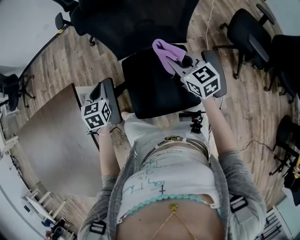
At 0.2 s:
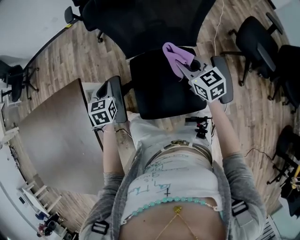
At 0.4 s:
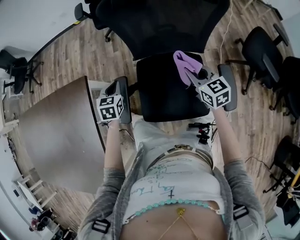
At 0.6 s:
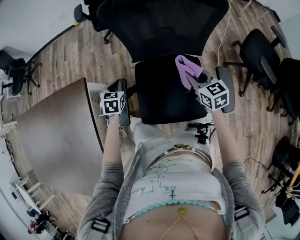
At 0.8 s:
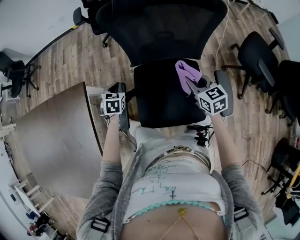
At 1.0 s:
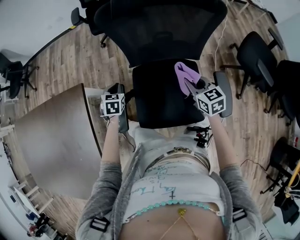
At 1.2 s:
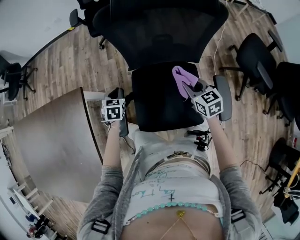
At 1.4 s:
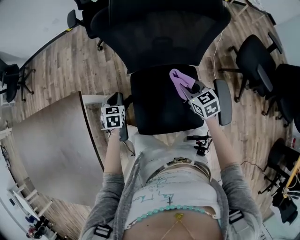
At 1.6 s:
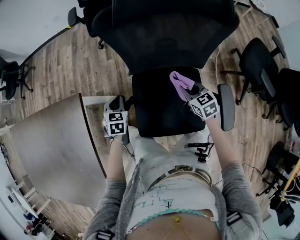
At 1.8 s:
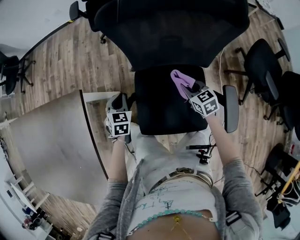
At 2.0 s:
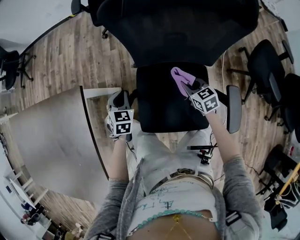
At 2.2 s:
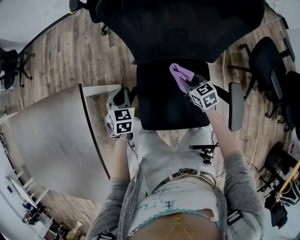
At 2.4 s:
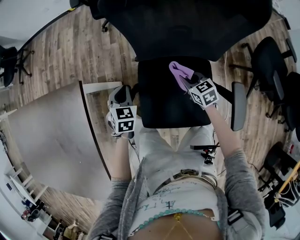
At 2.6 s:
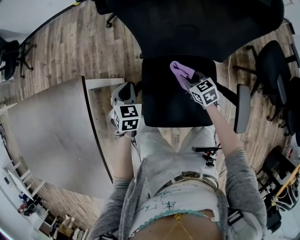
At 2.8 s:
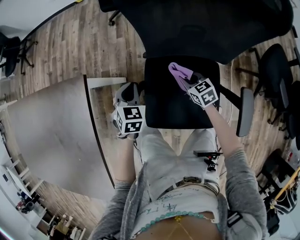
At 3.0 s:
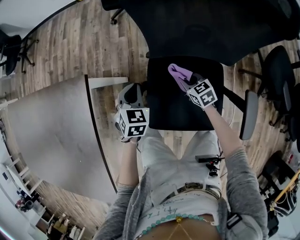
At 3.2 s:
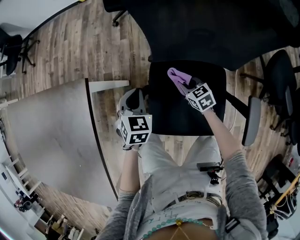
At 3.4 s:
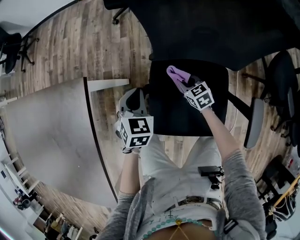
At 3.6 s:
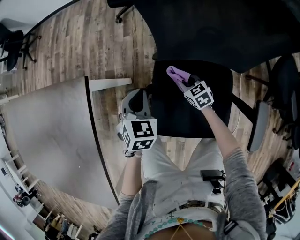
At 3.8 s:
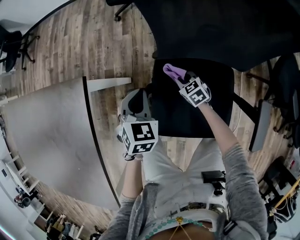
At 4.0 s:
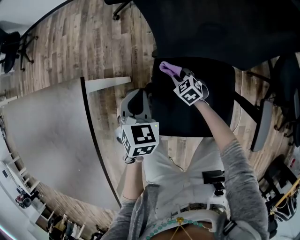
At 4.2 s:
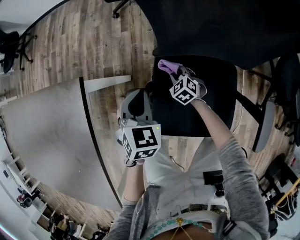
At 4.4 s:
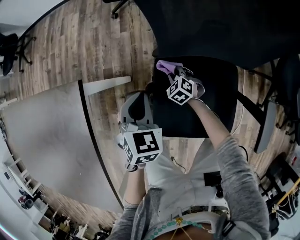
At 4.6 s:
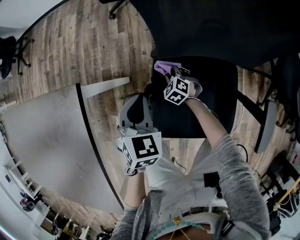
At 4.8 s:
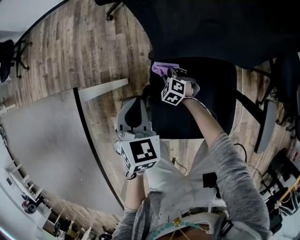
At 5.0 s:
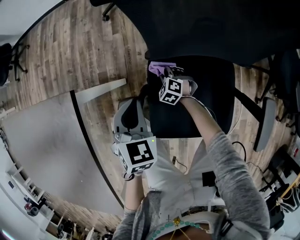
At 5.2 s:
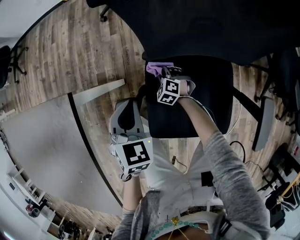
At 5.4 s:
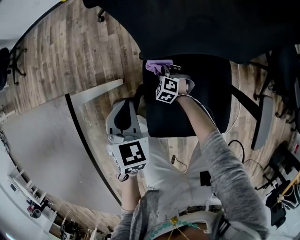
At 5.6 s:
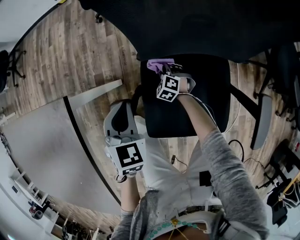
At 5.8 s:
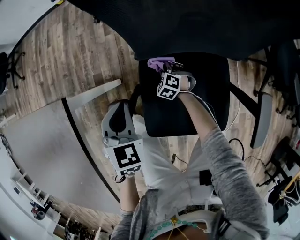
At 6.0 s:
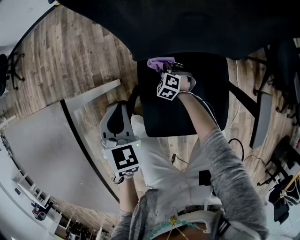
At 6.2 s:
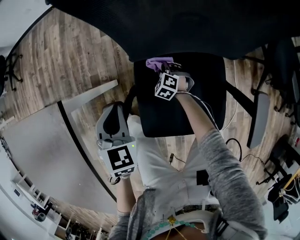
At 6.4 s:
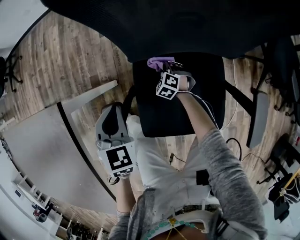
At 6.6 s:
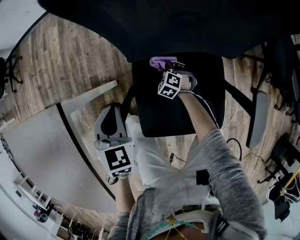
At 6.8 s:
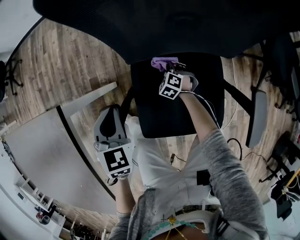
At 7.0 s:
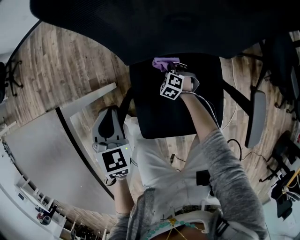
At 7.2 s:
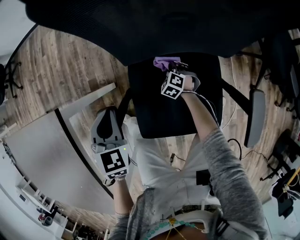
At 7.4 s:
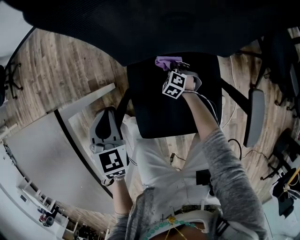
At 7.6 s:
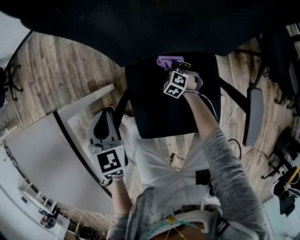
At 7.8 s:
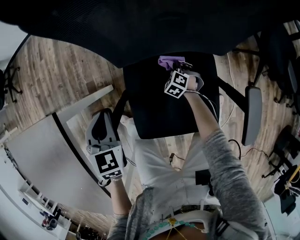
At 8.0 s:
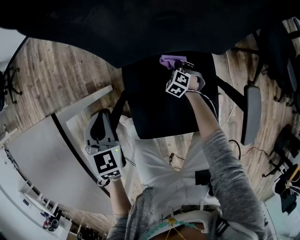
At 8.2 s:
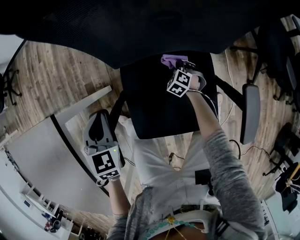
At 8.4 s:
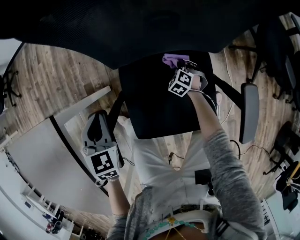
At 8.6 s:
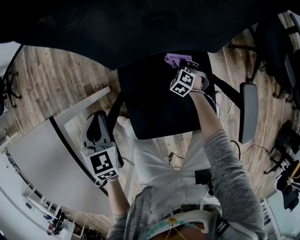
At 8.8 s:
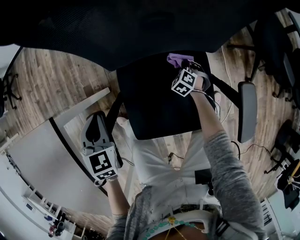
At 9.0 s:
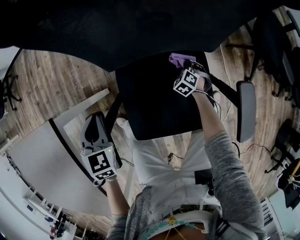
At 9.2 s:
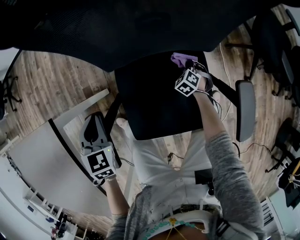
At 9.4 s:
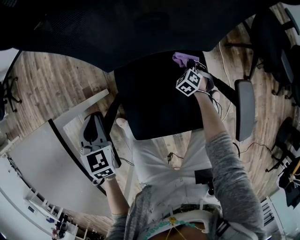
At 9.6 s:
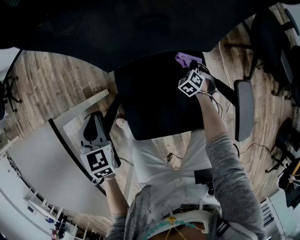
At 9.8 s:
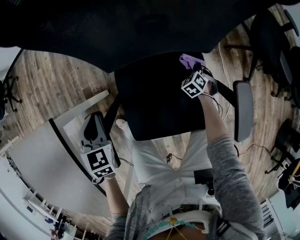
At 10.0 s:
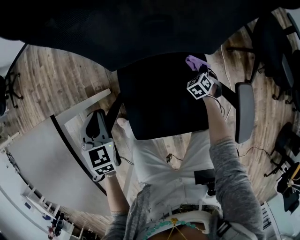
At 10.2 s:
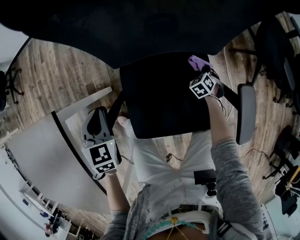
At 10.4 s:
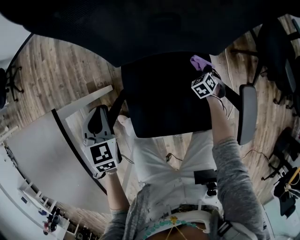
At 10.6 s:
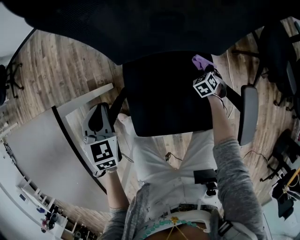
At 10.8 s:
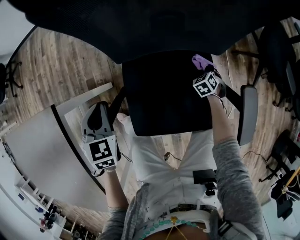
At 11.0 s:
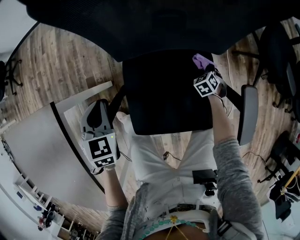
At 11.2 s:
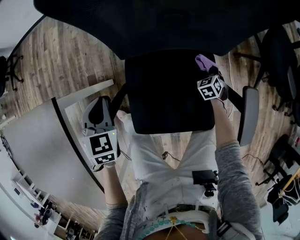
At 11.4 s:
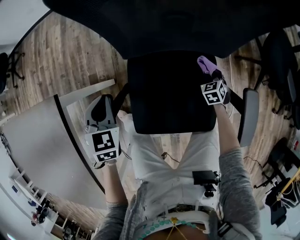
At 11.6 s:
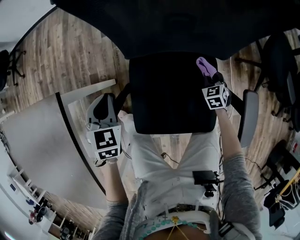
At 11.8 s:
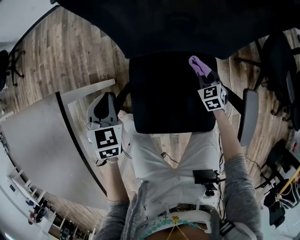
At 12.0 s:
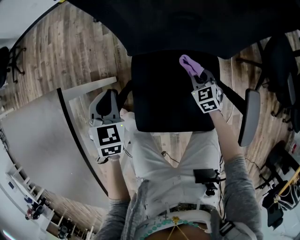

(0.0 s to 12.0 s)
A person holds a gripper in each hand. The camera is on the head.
0.0 s - 1.6 s: Both grippers travel together downward, about 15 cm.
1.6 s - 3.0 s: The right gripper travels downward, to the left and forward by about 15 cm.
3.0 s - 4.4 s: The right gripper goes approximately 15 cm downward, to the left and forward, and changes its angle by roughly 30 degrees.
4.4 s - 6.0 s: The right gripper shifts by roughly 5 cm.
6.0 s - 7.6 s: The right gripper shifts some 10 cm to the right.
7.6 s - 9.0 s: The right gripper heads to the right, covering some 10 cm.
9.0 s - 10.4 s: The right gripper shifts approximately 5 cm to the right.
10.4 s - 12.0 s: The right gripper heads to the left and upward, covering roughly 15 cm, and swivels some 30 degrees.

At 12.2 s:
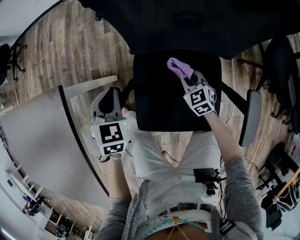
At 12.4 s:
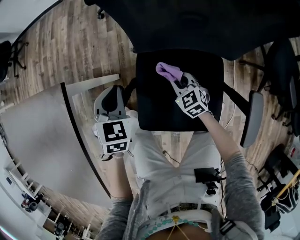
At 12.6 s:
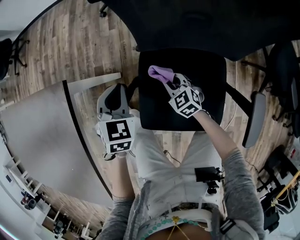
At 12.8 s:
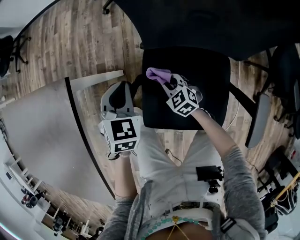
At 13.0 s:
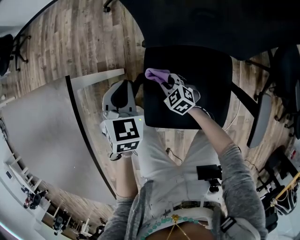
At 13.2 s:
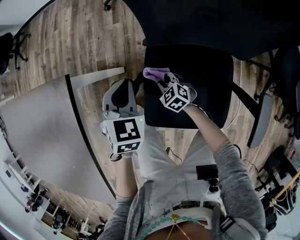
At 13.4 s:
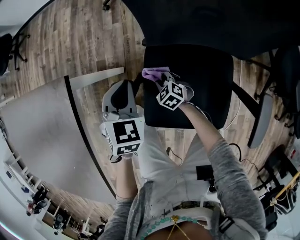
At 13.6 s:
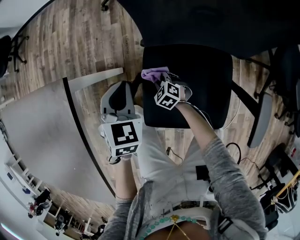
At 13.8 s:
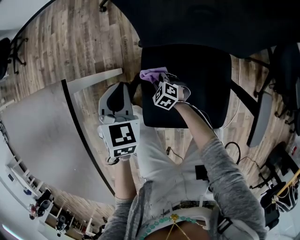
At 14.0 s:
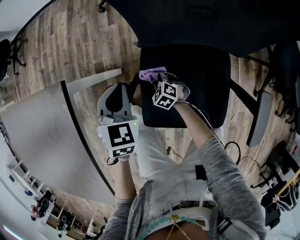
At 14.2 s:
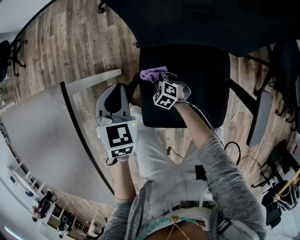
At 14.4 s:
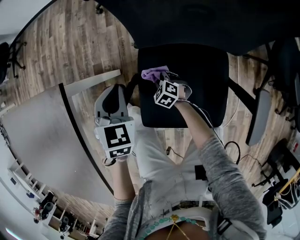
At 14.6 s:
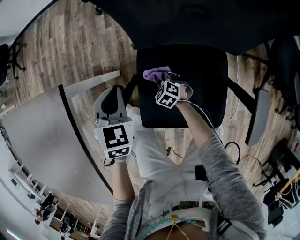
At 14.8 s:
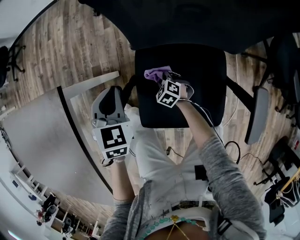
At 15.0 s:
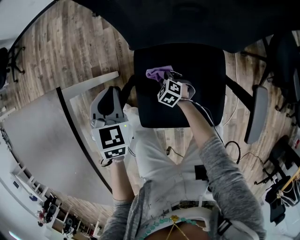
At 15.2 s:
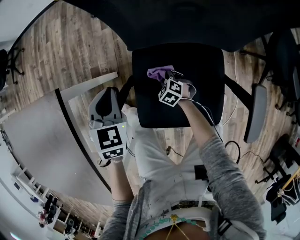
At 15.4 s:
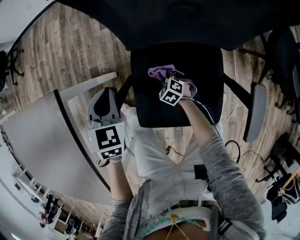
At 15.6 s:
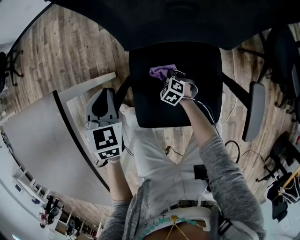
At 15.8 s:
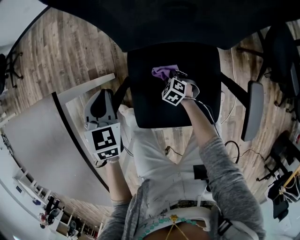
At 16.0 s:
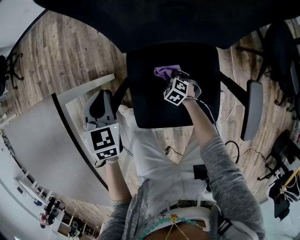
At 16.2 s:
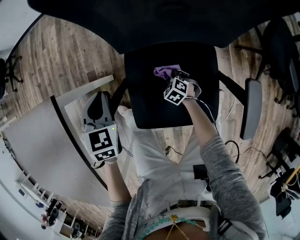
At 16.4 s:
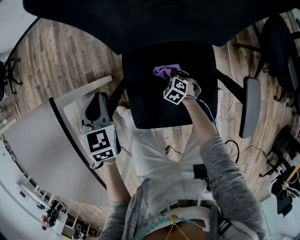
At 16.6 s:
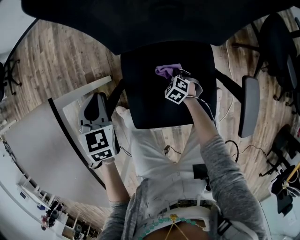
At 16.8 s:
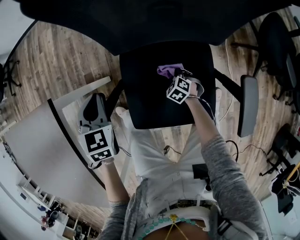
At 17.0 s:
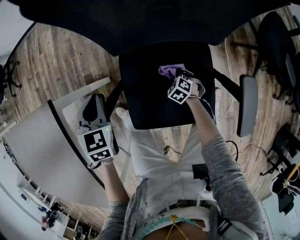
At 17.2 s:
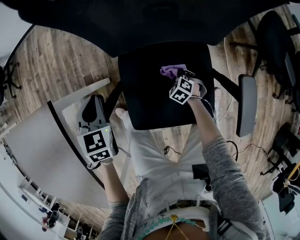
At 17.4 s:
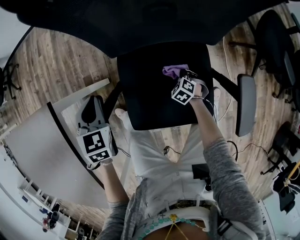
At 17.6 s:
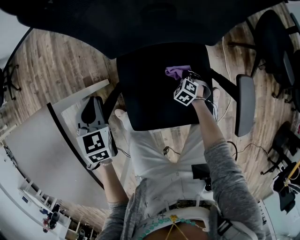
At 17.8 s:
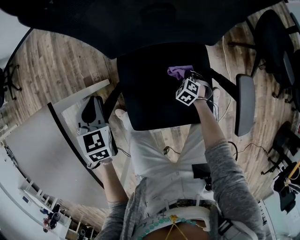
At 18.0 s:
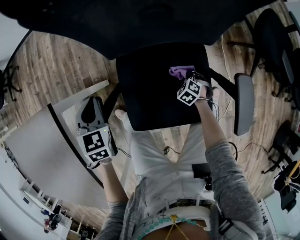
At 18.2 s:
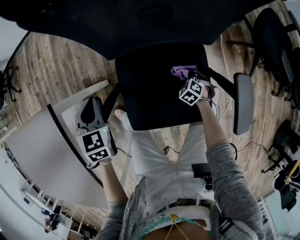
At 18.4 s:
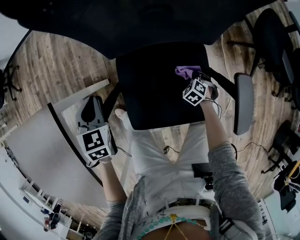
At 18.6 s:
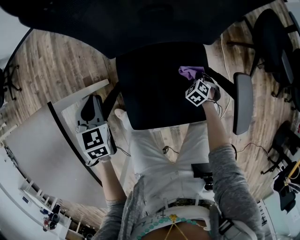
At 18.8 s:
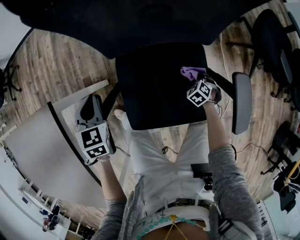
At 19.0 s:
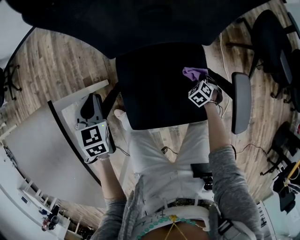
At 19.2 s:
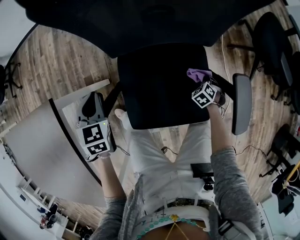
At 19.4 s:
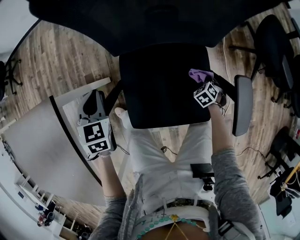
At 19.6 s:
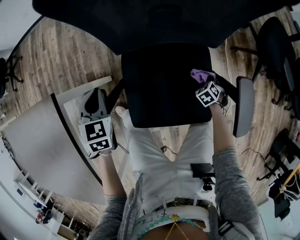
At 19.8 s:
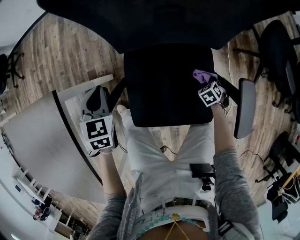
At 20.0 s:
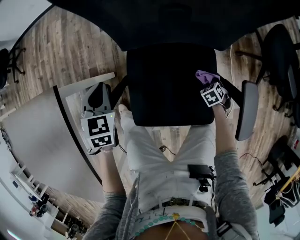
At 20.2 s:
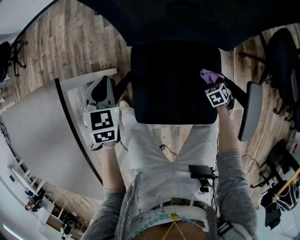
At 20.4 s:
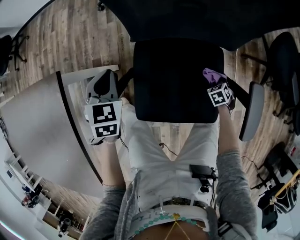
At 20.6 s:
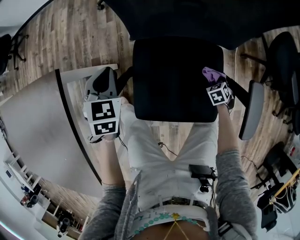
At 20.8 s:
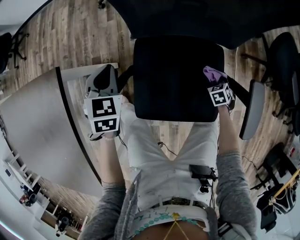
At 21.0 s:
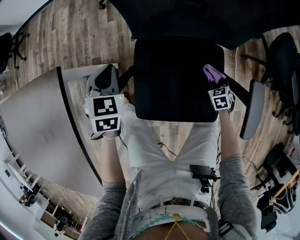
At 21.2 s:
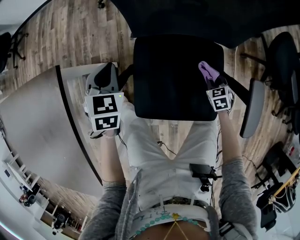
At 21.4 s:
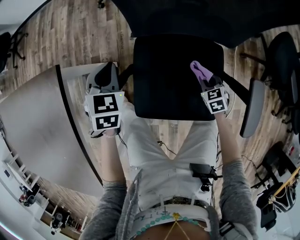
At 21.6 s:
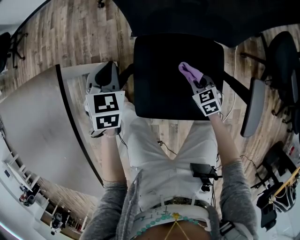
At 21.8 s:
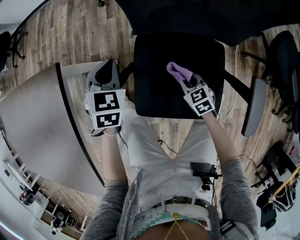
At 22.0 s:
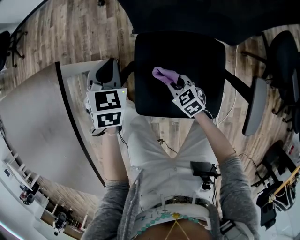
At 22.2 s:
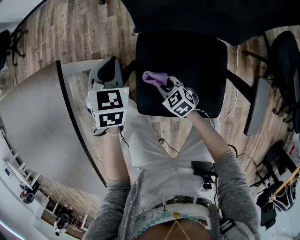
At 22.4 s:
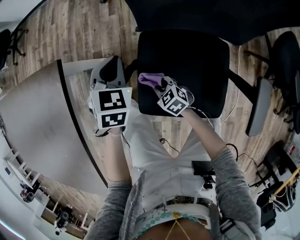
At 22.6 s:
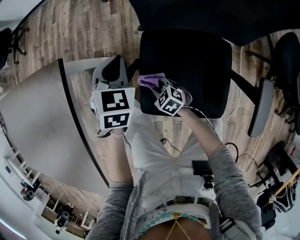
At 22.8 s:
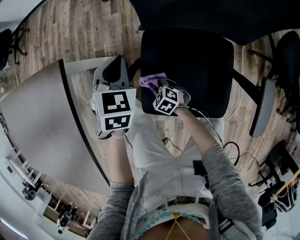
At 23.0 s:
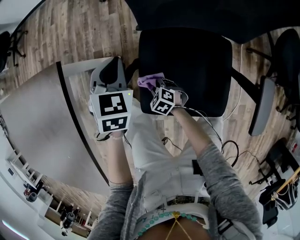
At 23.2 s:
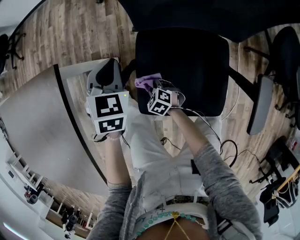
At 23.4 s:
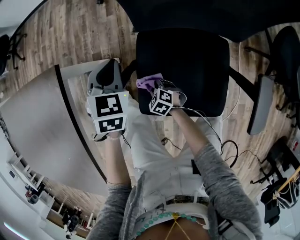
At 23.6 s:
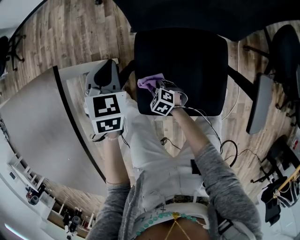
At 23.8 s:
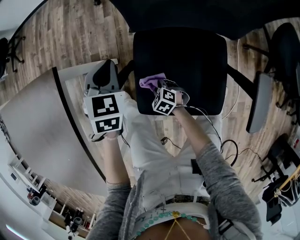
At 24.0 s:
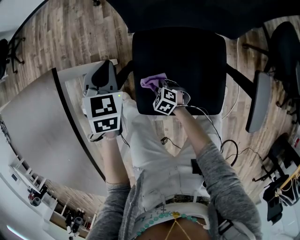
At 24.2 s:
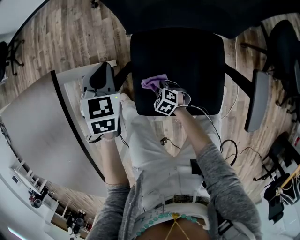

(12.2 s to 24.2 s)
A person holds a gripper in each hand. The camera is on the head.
12.2 s - 13.8 s: The right gripper moves to the left and downward, about 20 cm, and turns by some 20 degrees.
13.8 s - 15.2 s: The right gripper moves to the right, approximately 5 cm.
15.2 s - 16.6 s: The right gripper travels to the right by roughly 10 cm.
16.6 s - 18.2 s: The right gripper travels to the right by some 10 cm.
18.2 s - 19.8 s: The right gripper moves about 10 cm.
19.8 s - 21.2 s: The right gripper moves upward, approximately 5 cm.
21.2 s - 22.6 s: The right gripper moves approximately 30 cm, and rotates approximately 40 degrees.
22.6 s - 24.2 s: The right gripper is displaced downward by roughly 5 cm.
